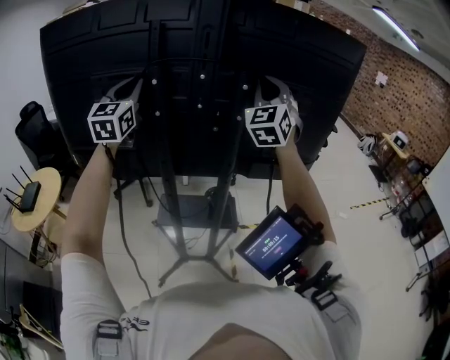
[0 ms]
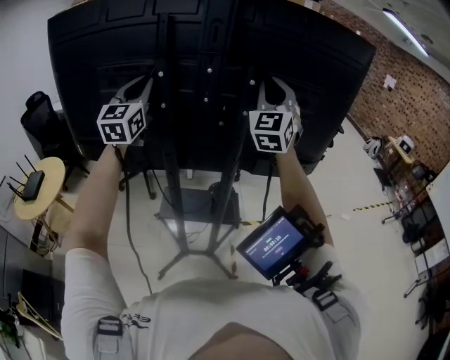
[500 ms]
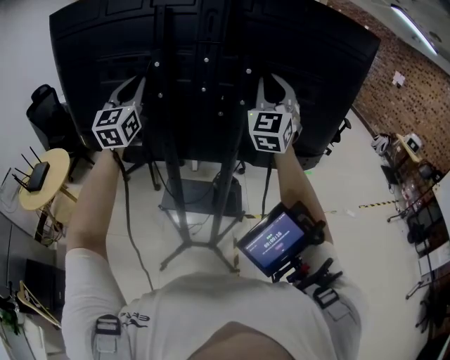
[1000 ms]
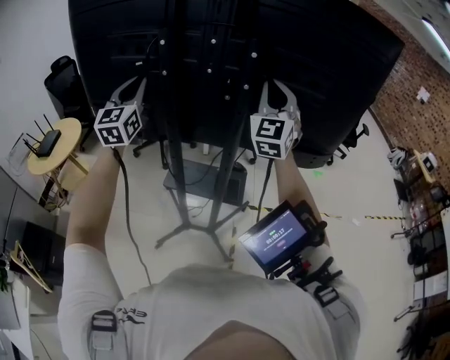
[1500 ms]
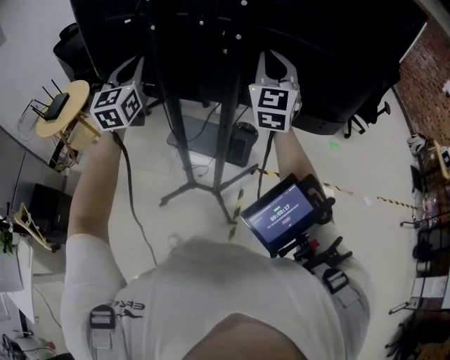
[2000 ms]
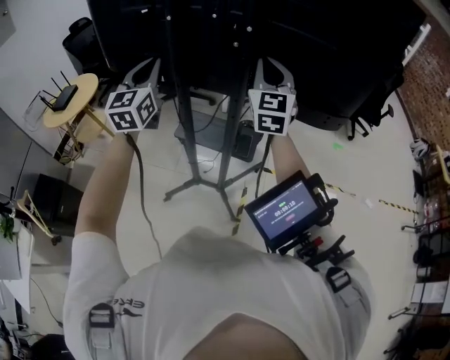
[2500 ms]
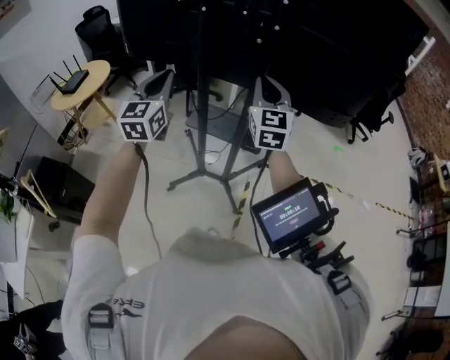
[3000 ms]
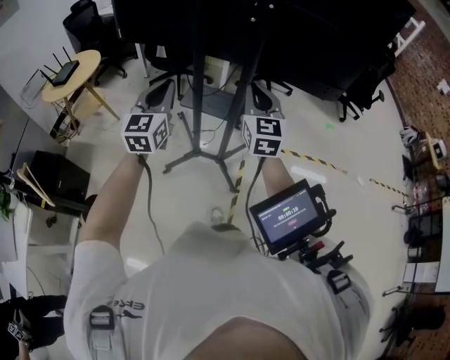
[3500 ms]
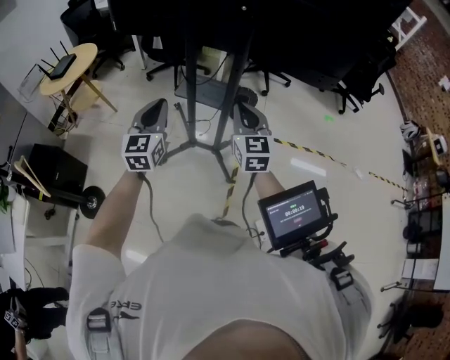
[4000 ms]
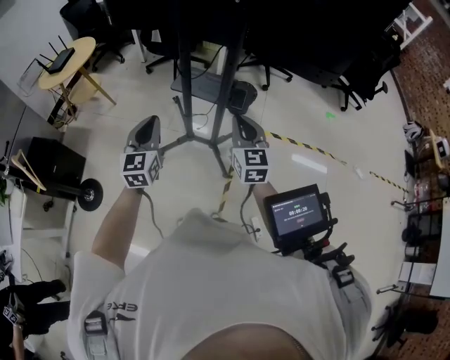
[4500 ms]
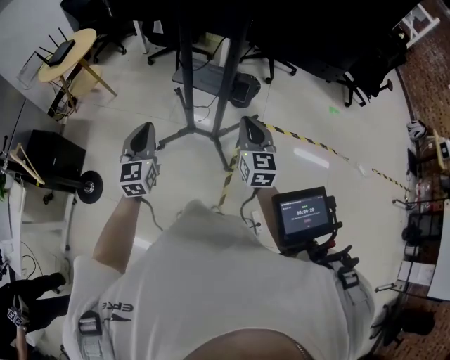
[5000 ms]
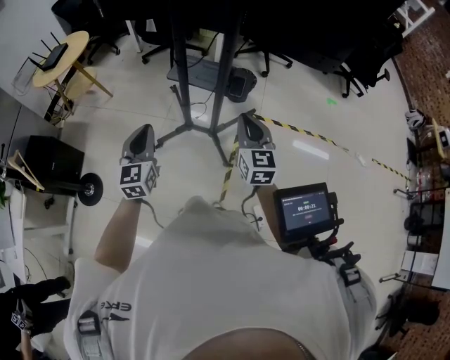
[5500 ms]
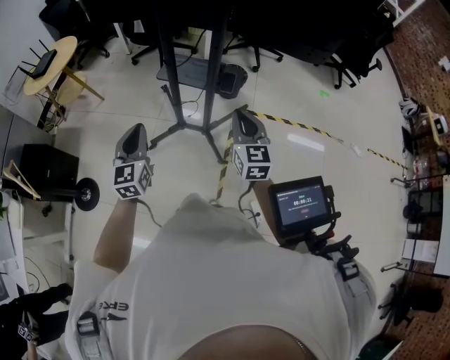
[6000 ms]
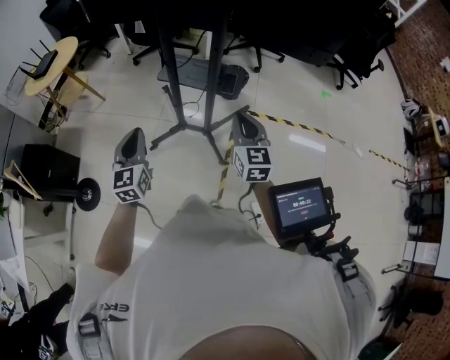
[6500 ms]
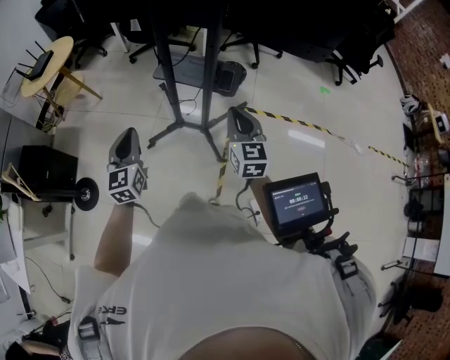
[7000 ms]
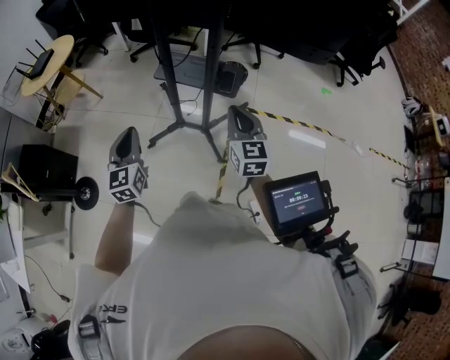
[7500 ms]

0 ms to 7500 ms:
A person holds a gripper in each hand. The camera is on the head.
0 ms to 2000 ms: The left gripper shifts roughly 20 cm downward and backward, while the right gripper heads downward, covering approximately 15 cm, and changes its angle by approximately 30 degrees.
2000 ms to 4000 ms: The two grippers go roughly 35 cm backward and downward. The right gripper rotates roughly 30 degrees.
4000 ms to 5500 ms: The right gripper goes roughly 10 cm downward and to the right. Meanwhile the left gripper shifts about 10 cm downward and backward.
5500 ms to 7500 ms: The grippers move only a little.

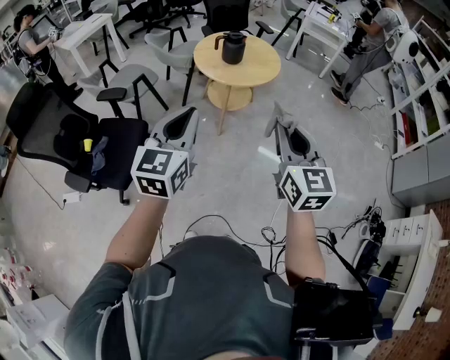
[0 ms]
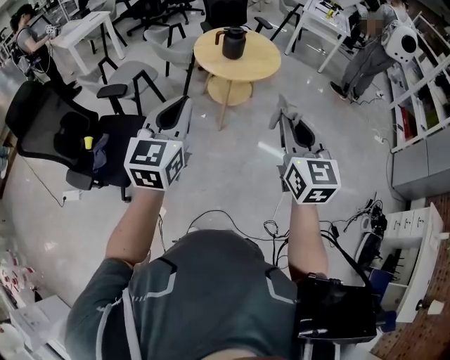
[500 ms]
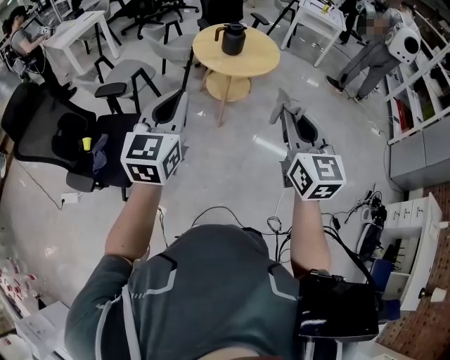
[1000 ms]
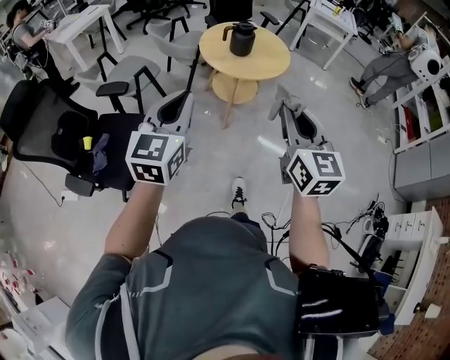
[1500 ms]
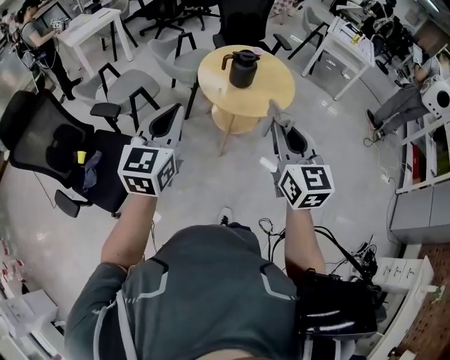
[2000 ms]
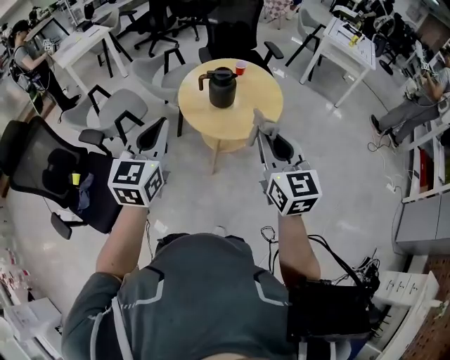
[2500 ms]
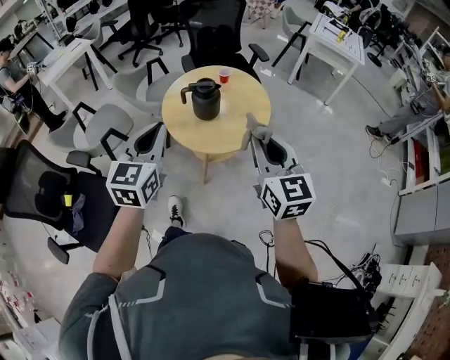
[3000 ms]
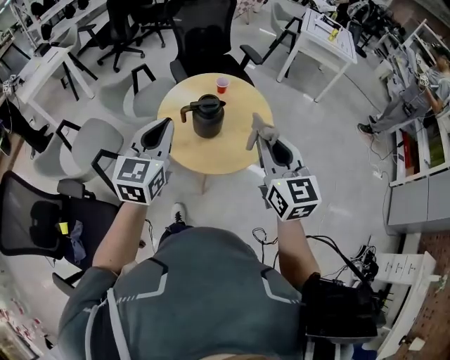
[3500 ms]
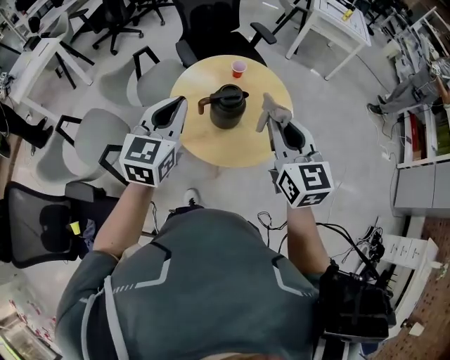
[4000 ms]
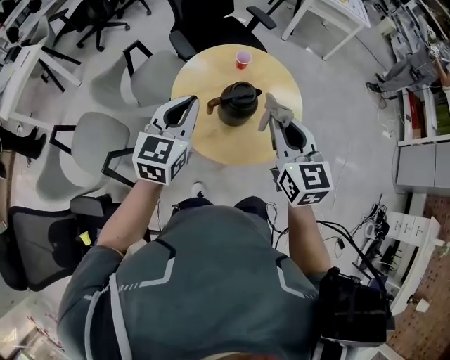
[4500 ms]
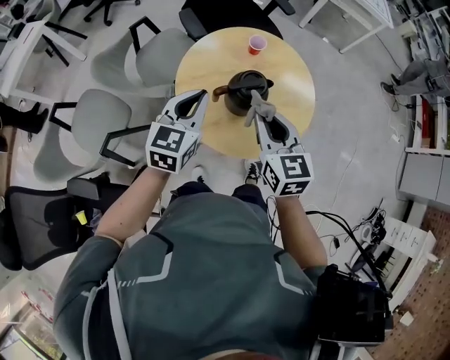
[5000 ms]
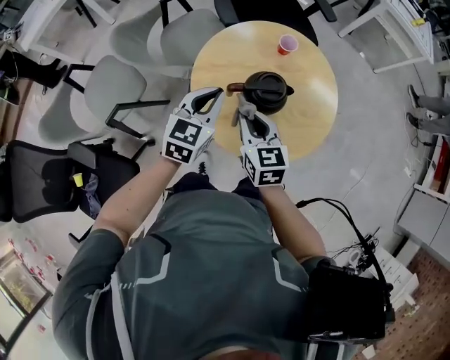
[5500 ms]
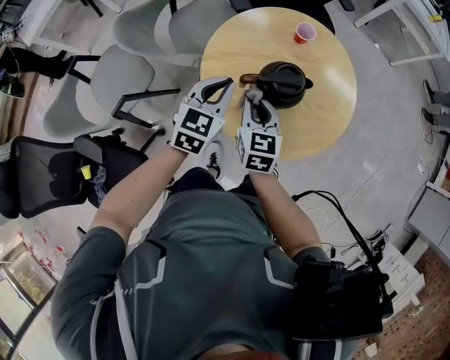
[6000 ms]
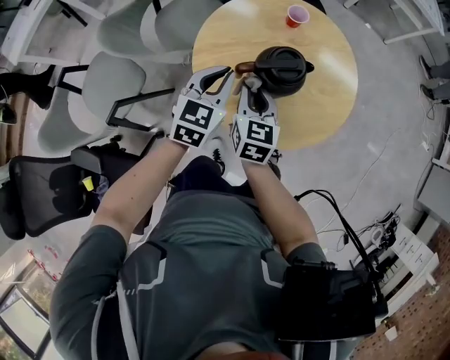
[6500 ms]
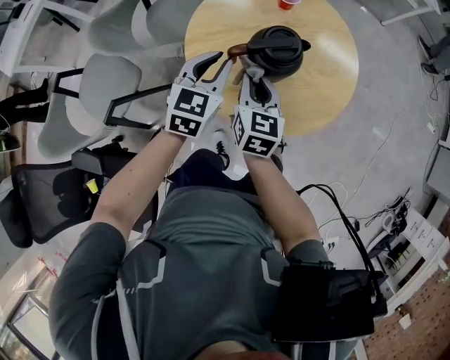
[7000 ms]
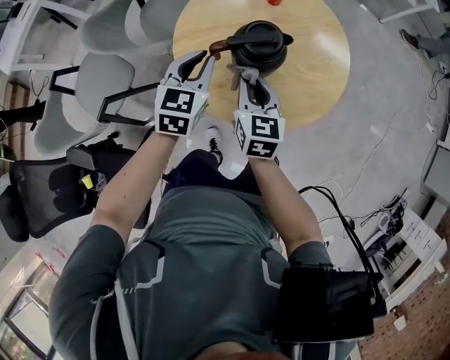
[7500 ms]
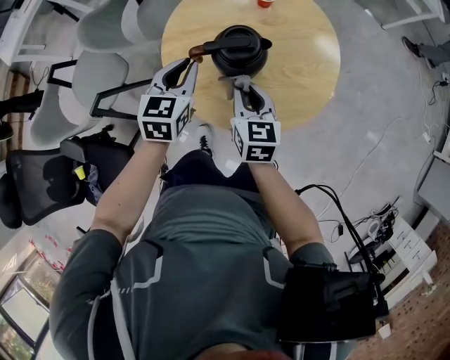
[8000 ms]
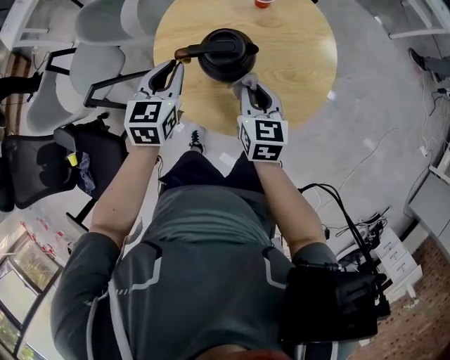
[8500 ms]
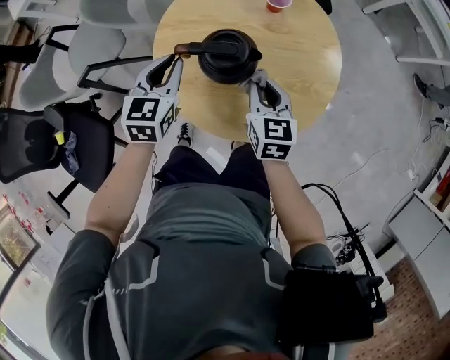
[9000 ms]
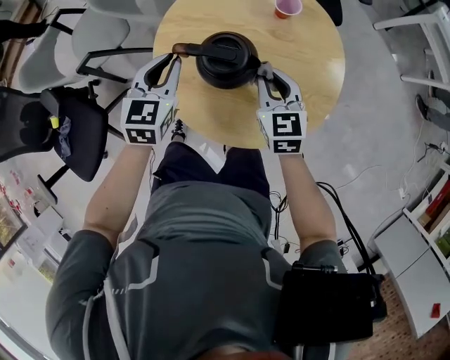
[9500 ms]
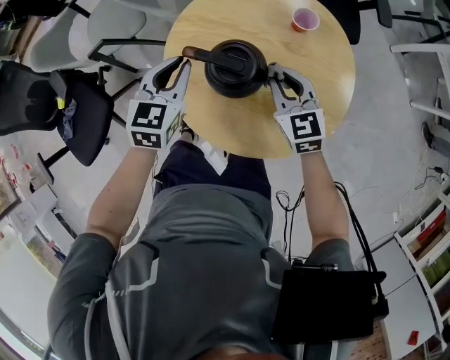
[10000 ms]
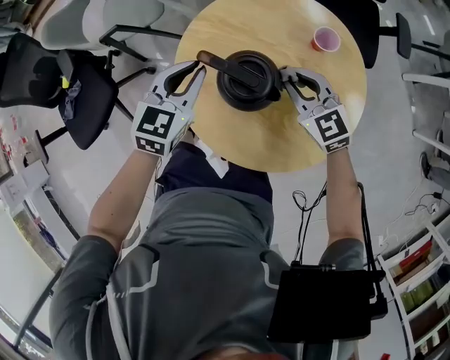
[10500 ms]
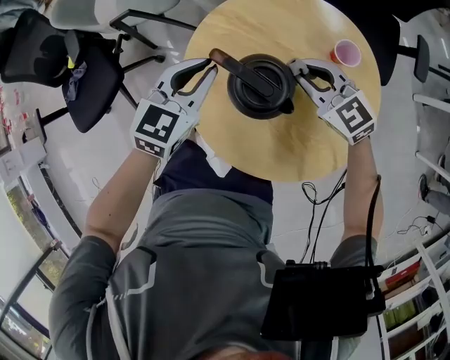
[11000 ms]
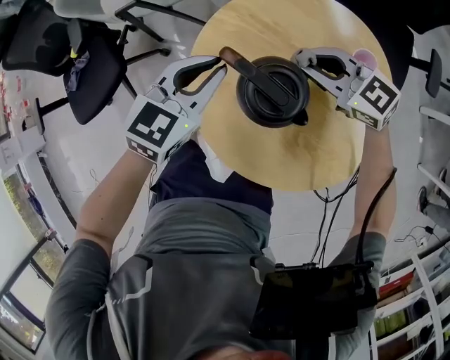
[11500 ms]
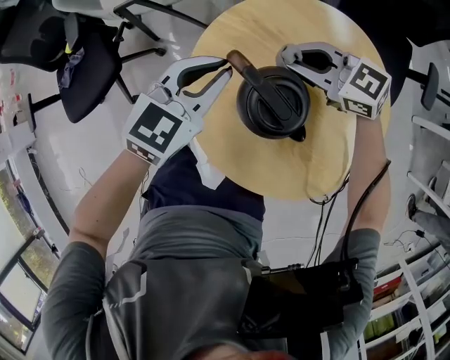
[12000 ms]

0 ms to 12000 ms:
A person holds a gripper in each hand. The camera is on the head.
0 ms to 2000 ms: The grippers both shift forward by about 20 cm.
2000 ms to 4000 ms: The two grippers go about 40 cm forward.
4000 ms to 6000 ms: The right gripper shifts about 35 cm downward, to the left and forward, and changes its angle by roughly 20 degrees. Meanwhile the left gripper shifts roughly 25 cm downward and forward.
6000 ms to 8000 ms: The right gripper heads to the right, covering about 10 cm.
8000 ms to 10000 ms: The left gripper changes its angle by about 20 degrees, while the right gripper ends up about 15 cm from where it was, and rotates about 50 degrees.
10000 ms to 12000 ms: The right gripper moves some 15 cm, and turns by approximately 60 degrees.

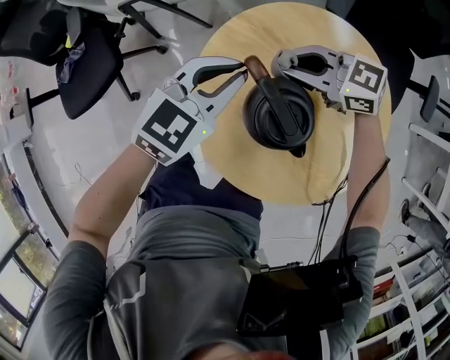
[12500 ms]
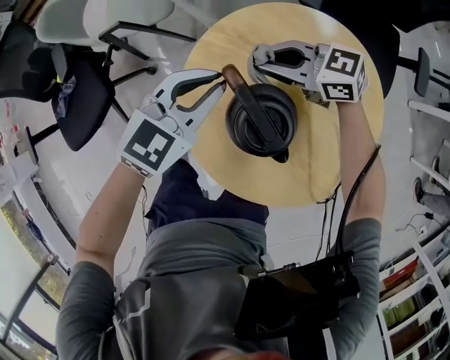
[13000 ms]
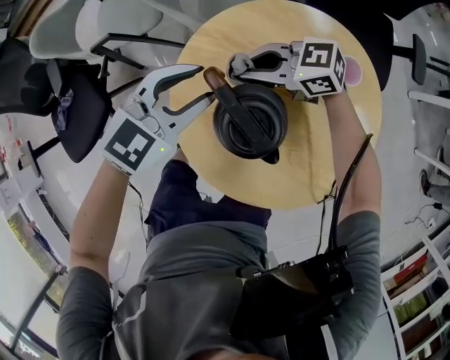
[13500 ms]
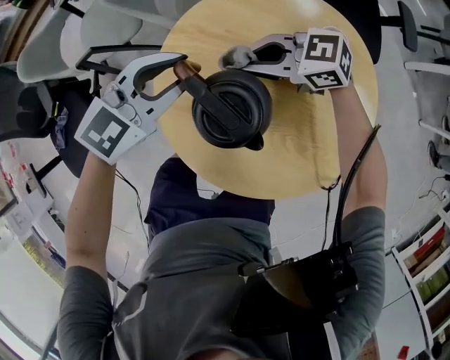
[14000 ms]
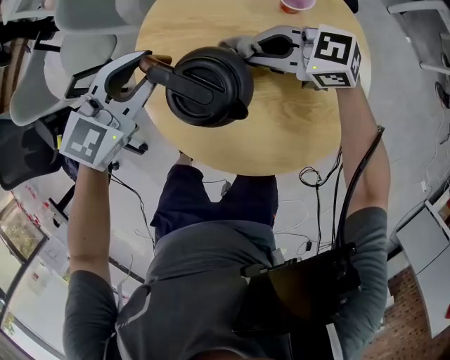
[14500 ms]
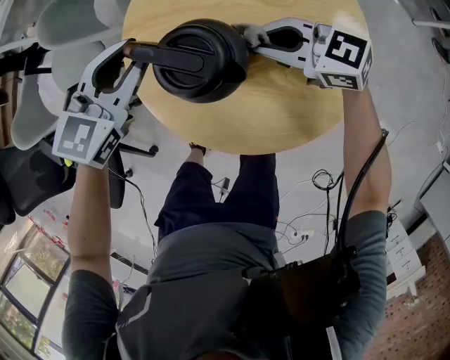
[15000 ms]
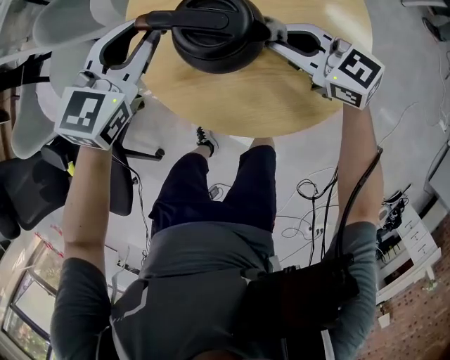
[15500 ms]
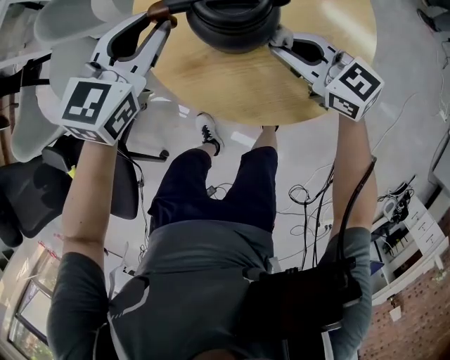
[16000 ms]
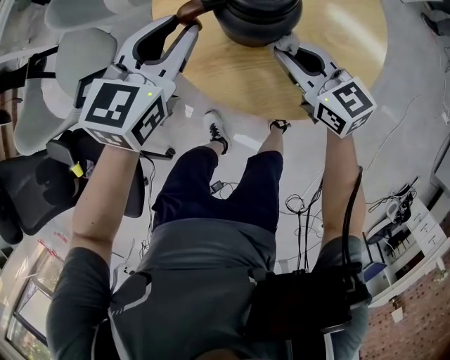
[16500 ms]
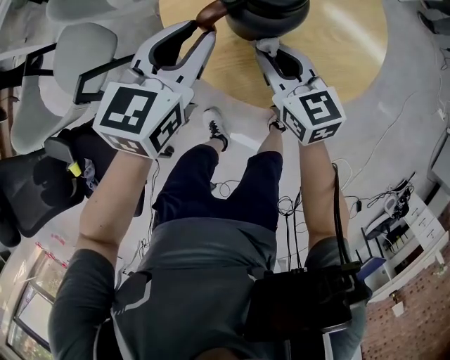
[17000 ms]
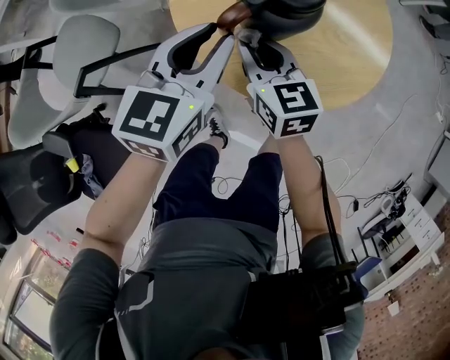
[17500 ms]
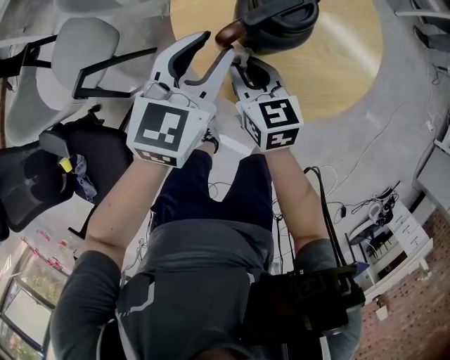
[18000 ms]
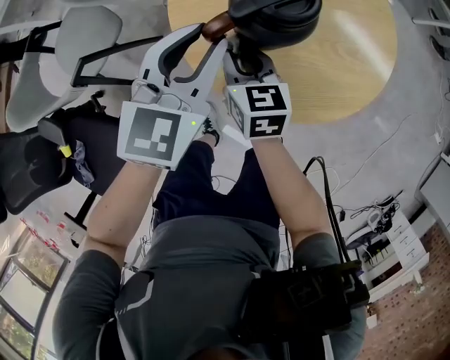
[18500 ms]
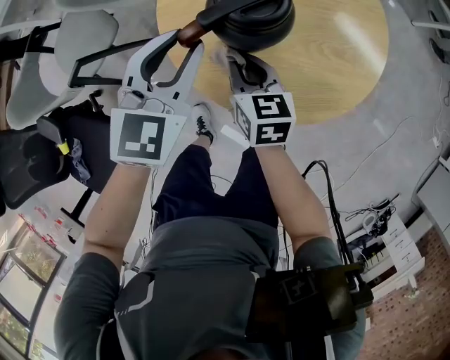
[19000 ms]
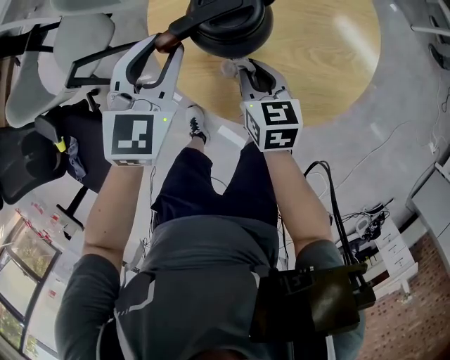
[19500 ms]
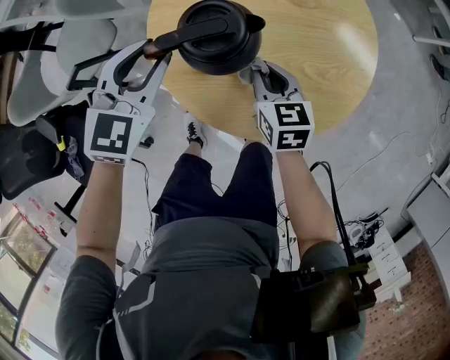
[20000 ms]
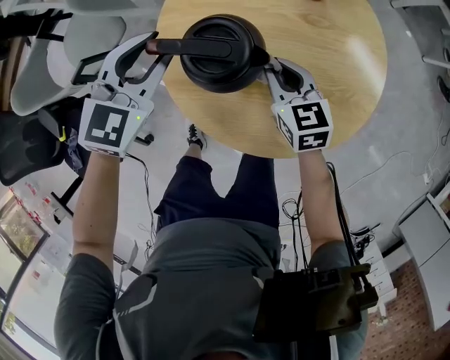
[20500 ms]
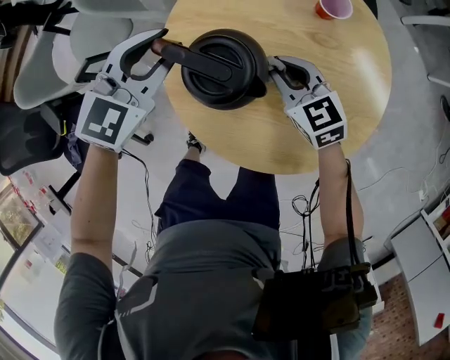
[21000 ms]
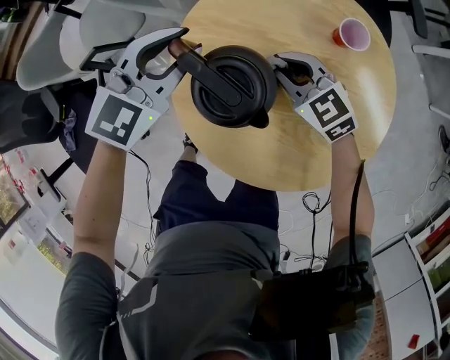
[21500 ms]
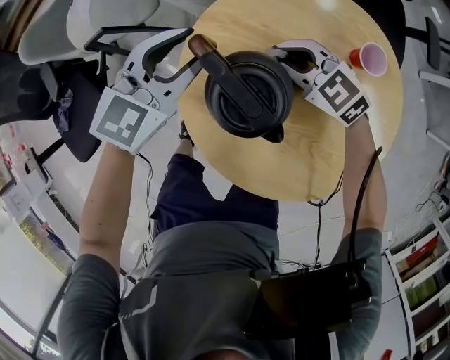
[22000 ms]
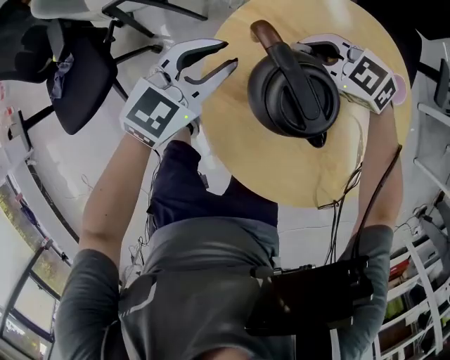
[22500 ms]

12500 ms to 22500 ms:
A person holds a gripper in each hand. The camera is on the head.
12500 ms to 14500 ms: The right gripper moves approximately 10 cm, and rotates approximately 30 degrees. Meanwhile the left gripper rotates roughly 20 degrees.
14500 ms to 16500 ms: The right gripper ends up about 10 cm from where it was, and swivels roughly 60 degrees.
16500 ms to 18500 ms: The right gripper travels to the left by about 10 cm, and rotates approximately 20 degrees.
18500 ms to 20500 ms: The left gripper heads forward, covering about 5 cm; the right gripper is displaced to the right by some 15 cm, and changes its angle by some 20 degrees.
20500 ms to 22500 ms: The right gripper ends up roughly 15 cm from where it was, and turns by about 80 degrees. Meanwhile the left gripper goes approximately 5 cm downward, and changes its angle by some 20 degrees.
